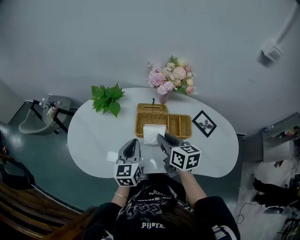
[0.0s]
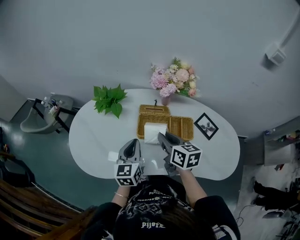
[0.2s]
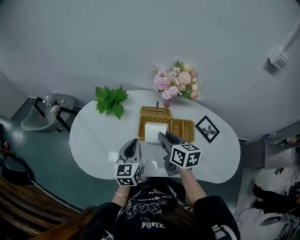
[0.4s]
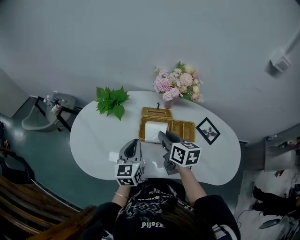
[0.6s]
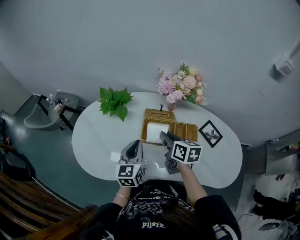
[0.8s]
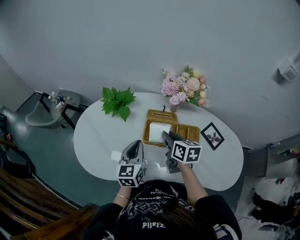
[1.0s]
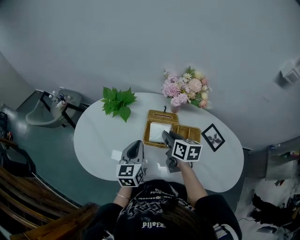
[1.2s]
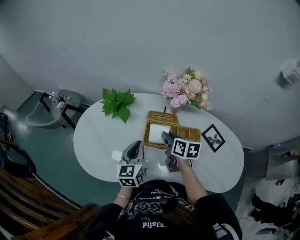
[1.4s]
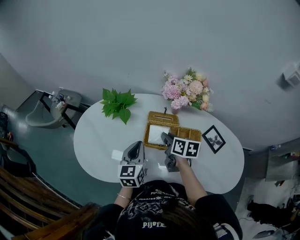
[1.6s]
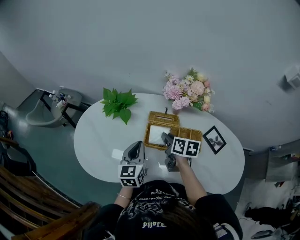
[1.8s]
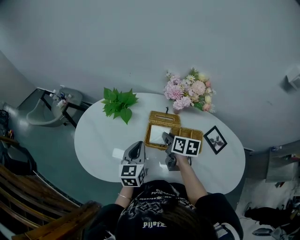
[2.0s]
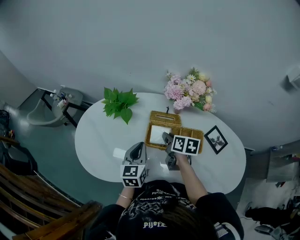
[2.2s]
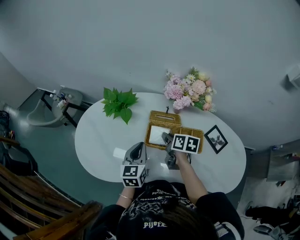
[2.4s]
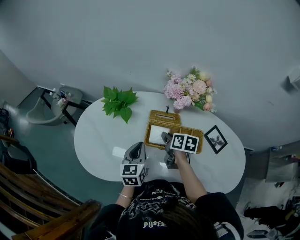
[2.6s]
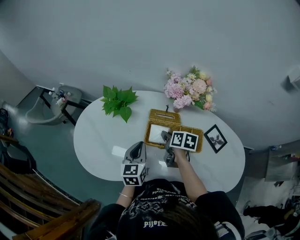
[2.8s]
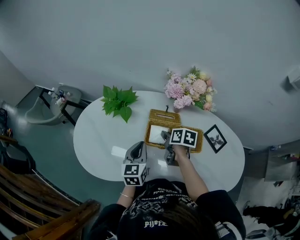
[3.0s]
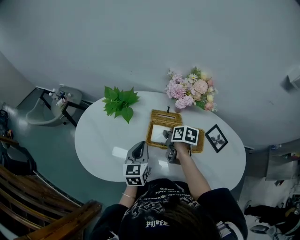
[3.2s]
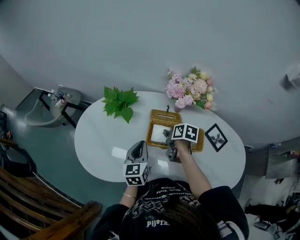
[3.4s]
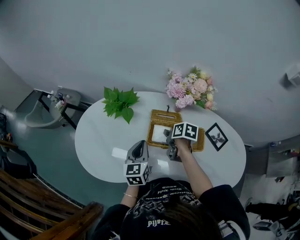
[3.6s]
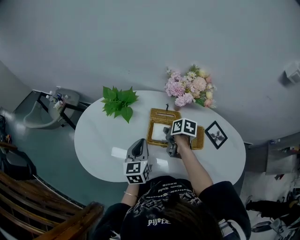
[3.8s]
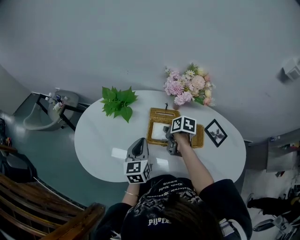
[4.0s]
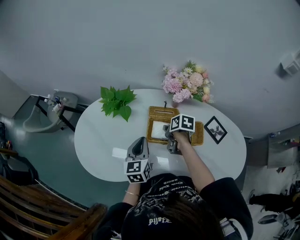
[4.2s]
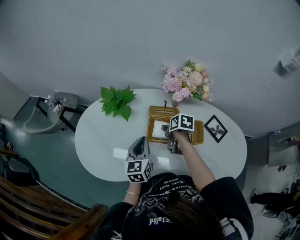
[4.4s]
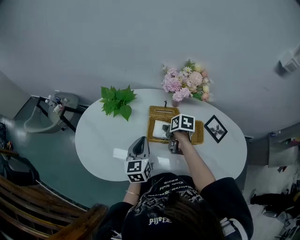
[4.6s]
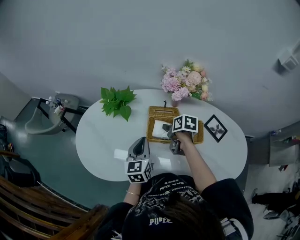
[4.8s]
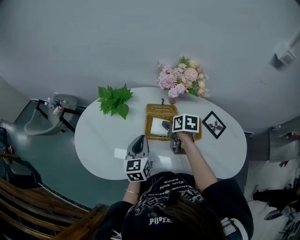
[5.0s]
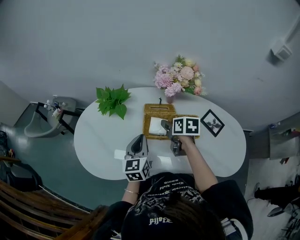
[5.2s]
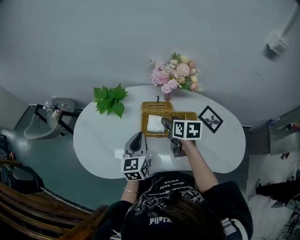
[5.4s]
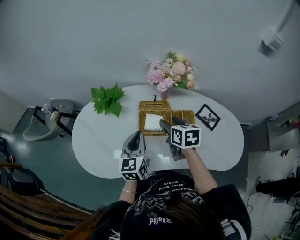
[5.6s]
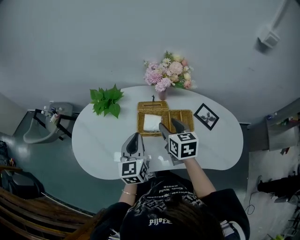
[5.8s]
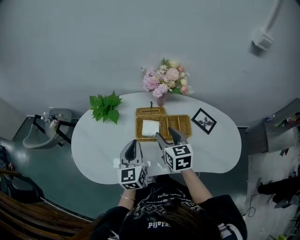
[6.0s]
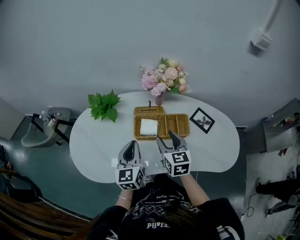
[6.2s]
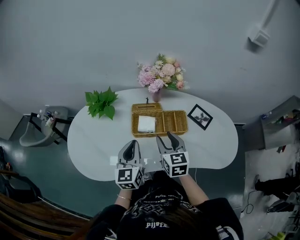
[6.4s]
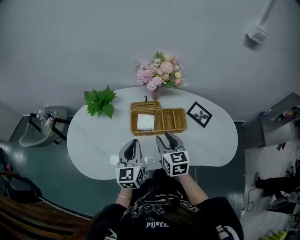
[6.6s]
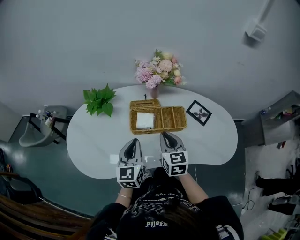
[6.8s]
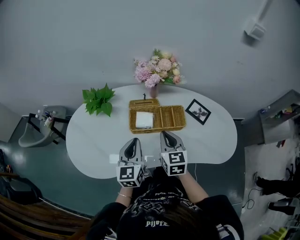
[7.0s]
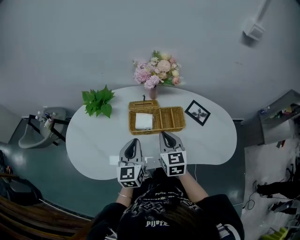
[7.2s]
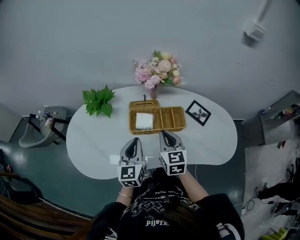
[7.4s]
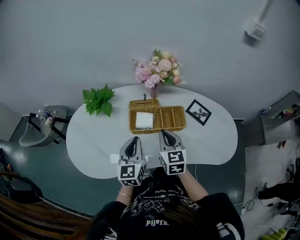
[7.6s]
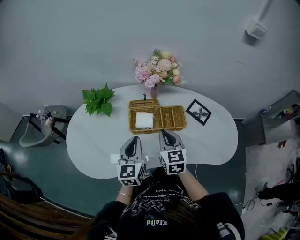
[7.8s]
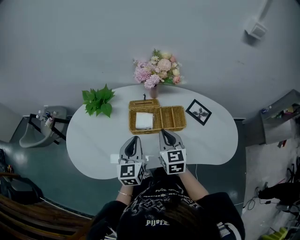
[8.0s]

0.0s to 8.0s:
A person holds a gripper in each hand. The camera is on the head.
0.0s to 1.6s: The left gripper goes some 5 cm forward. The right gripper goes roughly 10 cm forward and downward.
1.6s to 3.2s: The right gripper travels downward by some 5 cm.
3.2s to 4.8s: The right gripper opens.
4.8s to 6.4s: The right gripper goes about 15 cm backward and upward, and rotates about 50 degrees; the left gripper travels backward by about 5 cm.
6.4s to 8.0s: The right gripper closes up.

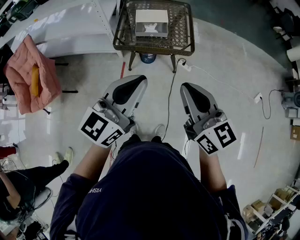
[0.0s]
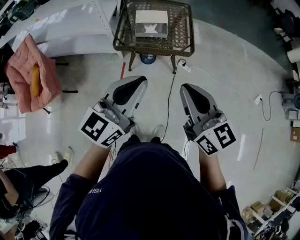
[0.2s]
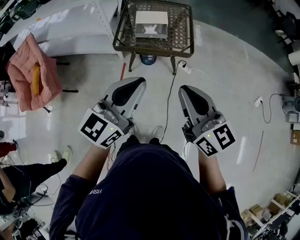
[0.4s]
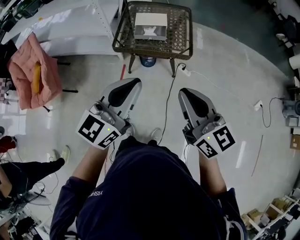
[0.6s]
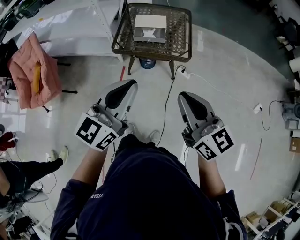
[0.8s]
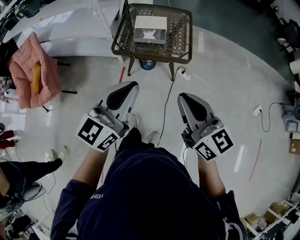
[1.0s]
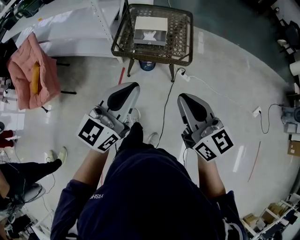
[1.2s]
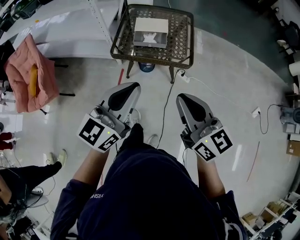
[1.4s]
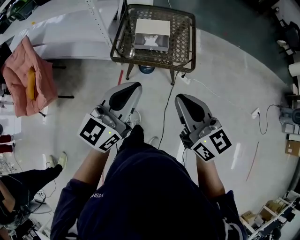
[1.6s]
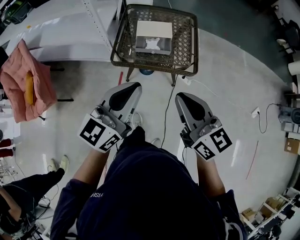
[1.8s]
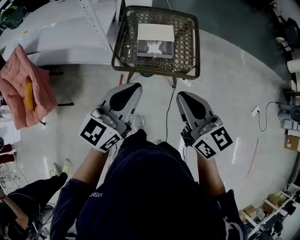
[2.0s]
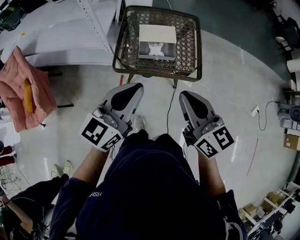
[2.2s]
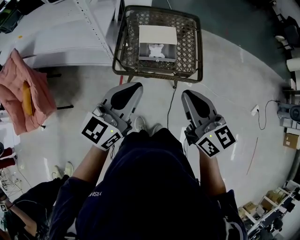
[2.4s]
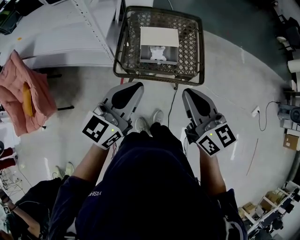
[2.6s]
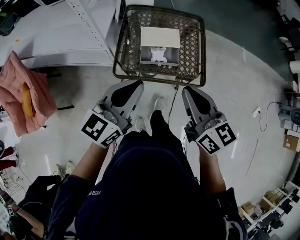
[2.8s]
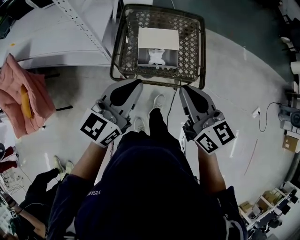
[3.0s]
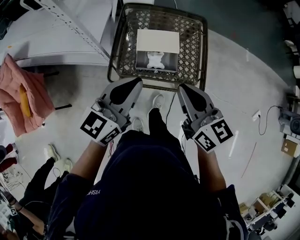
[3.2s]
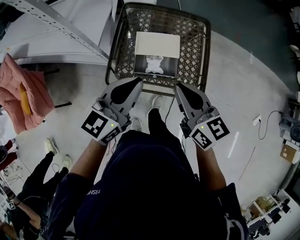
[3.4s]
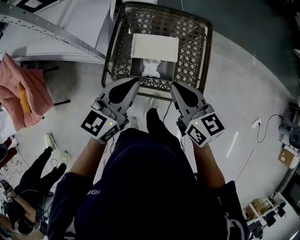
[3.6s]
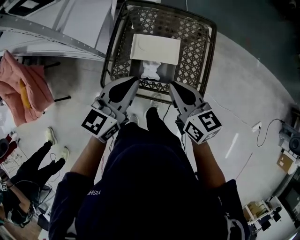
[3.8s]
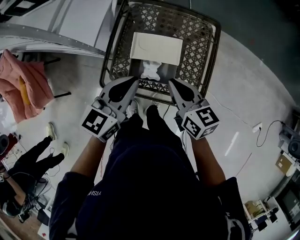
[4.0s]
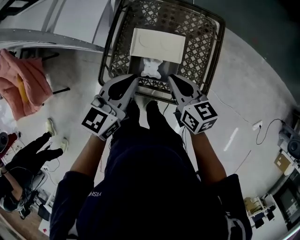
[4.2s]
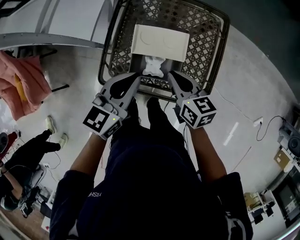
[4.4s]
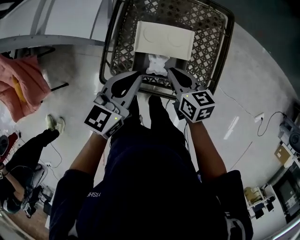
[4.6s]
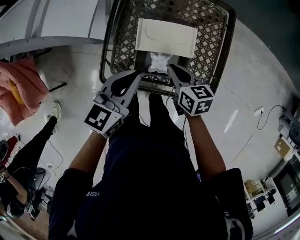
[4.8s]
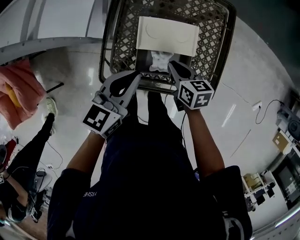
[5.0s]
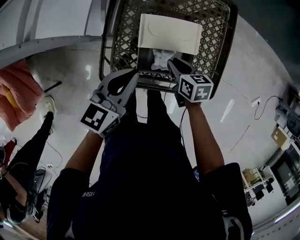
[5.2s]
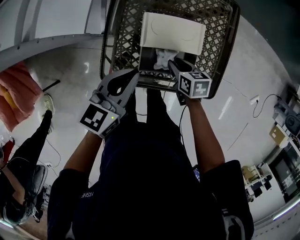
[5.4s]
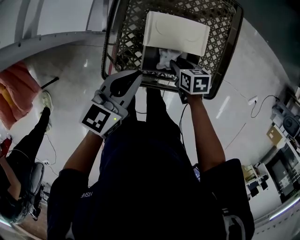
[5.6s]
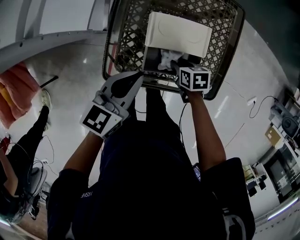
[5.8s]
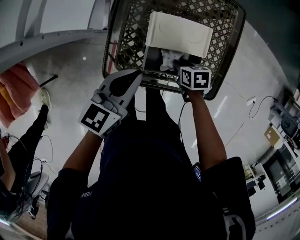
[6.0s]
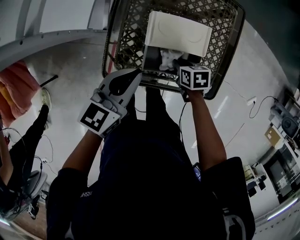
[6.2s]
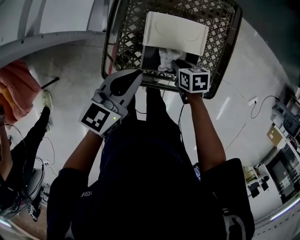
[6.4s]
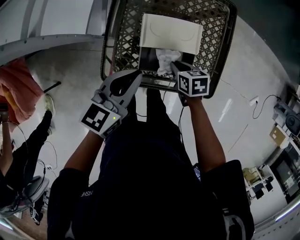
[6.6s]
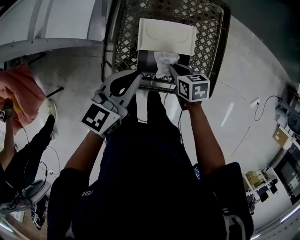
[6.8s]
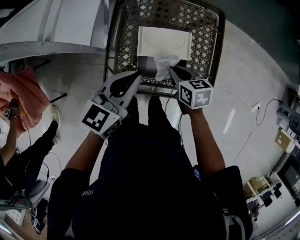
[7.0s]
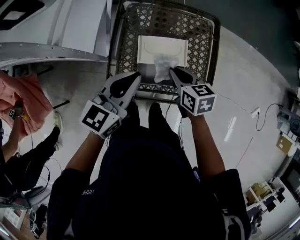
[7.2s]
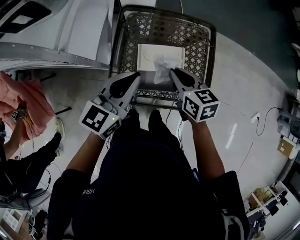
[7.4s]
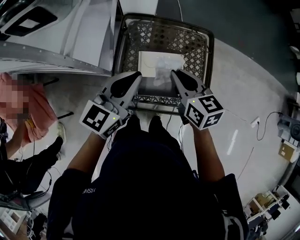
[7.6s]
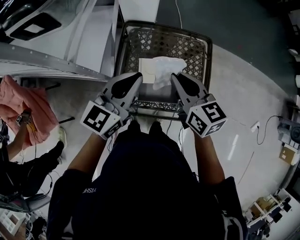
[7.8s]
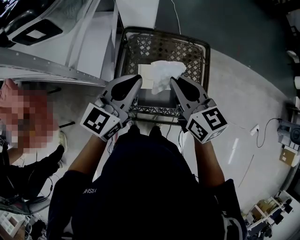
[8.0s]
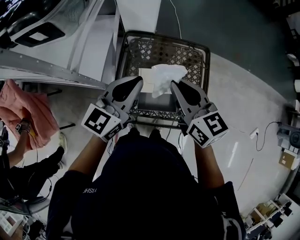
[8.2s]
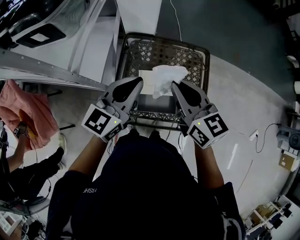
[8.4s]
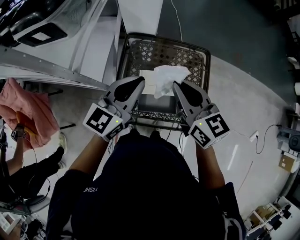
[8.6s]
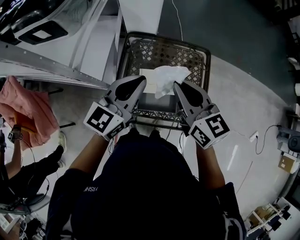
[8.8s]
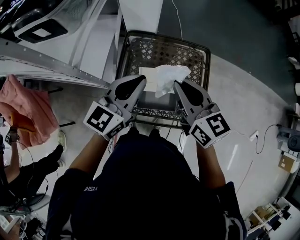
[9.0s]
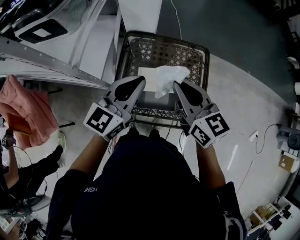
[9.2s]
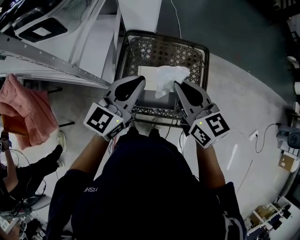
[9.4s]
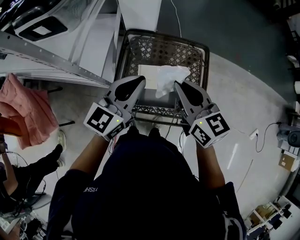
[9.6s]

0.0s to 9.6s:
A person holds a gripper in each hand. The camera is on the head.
0.0s to 1.6s: The two grippers go about 10 cm forward.
1.6s to 3.2s: Both grippers travel together forward, approximately 25 cm.
3.2s to 4.8s: The left gripper shifts some 15 cm downward and forward; the right gripper shifts about 25 cm downward and forward, and changes its angle by roughly 30 degrees.
4.8s to 6.4s: The right gripper goes some 10 cm downward, rotates roughly 30 degrees, and opens, then closes again.
6.4s to 8.0s: The right gripper moves upward, approximately 35 cm, and points its fingers approximately 50 degrees further upward. The left gripper is displaced upward and forward by about 20 cm, and turns by roughly 20 degrees.
8.0s to 9.6s: There are only small adjustments of the grippers.

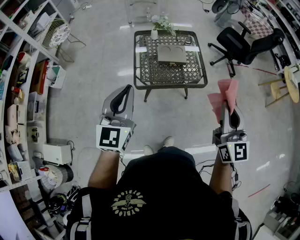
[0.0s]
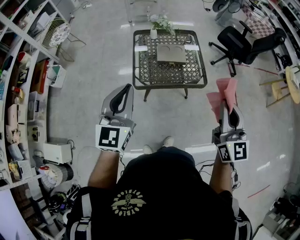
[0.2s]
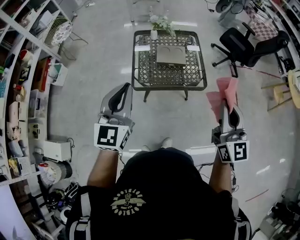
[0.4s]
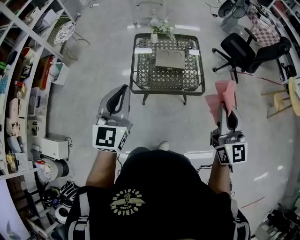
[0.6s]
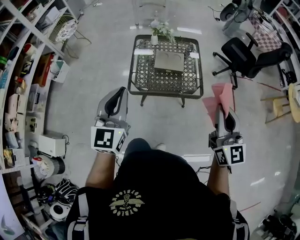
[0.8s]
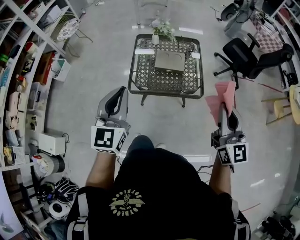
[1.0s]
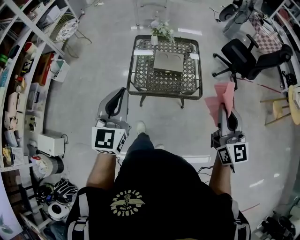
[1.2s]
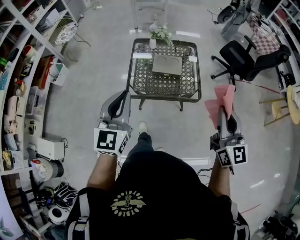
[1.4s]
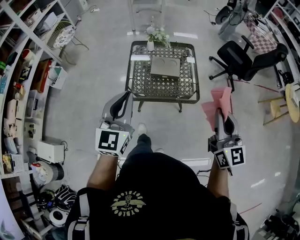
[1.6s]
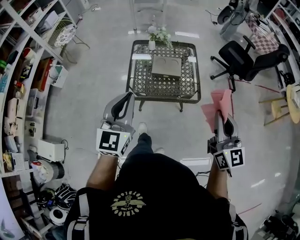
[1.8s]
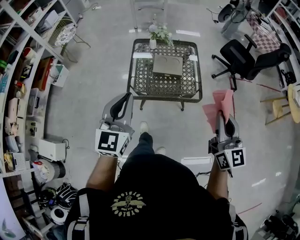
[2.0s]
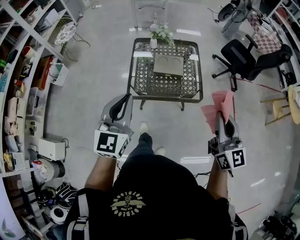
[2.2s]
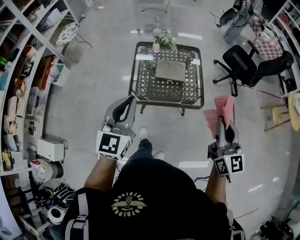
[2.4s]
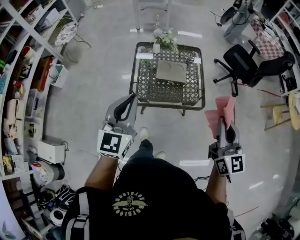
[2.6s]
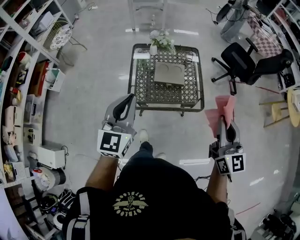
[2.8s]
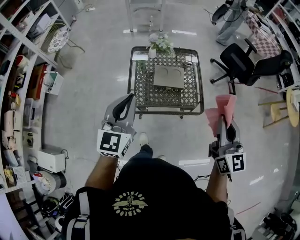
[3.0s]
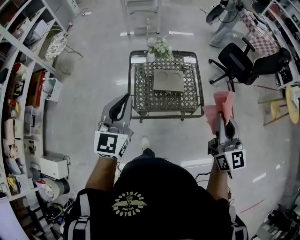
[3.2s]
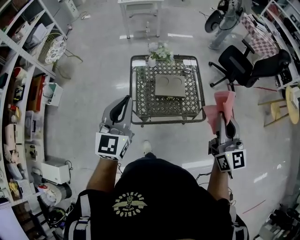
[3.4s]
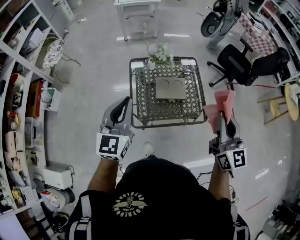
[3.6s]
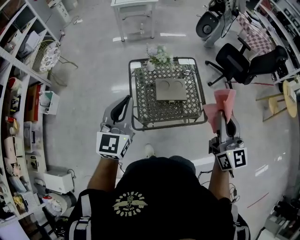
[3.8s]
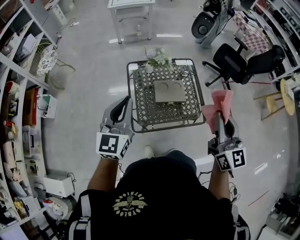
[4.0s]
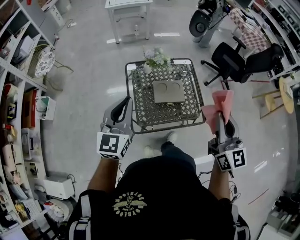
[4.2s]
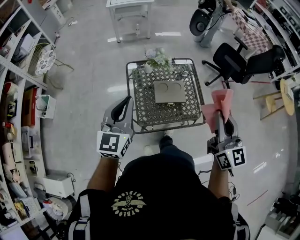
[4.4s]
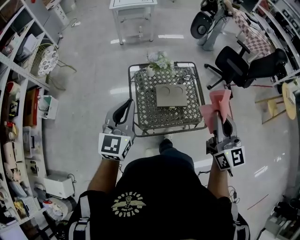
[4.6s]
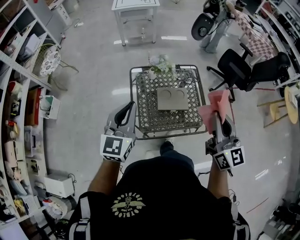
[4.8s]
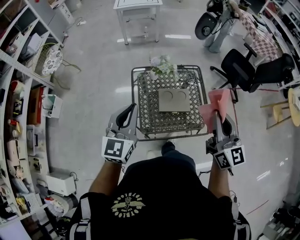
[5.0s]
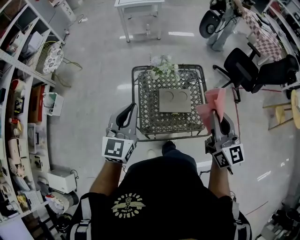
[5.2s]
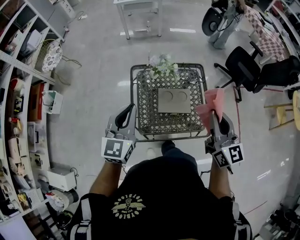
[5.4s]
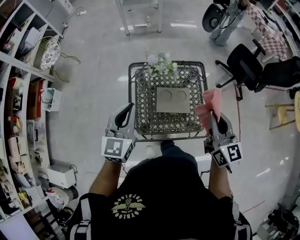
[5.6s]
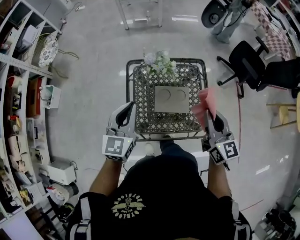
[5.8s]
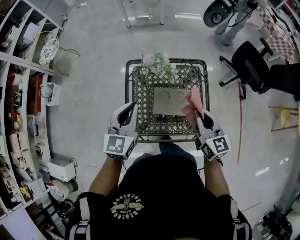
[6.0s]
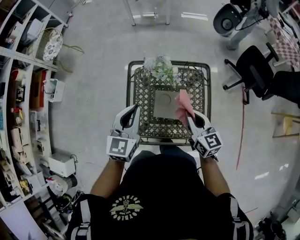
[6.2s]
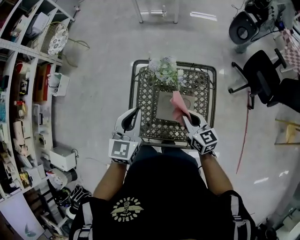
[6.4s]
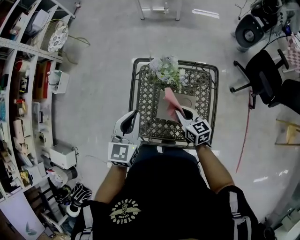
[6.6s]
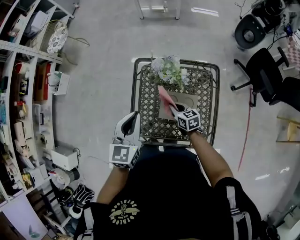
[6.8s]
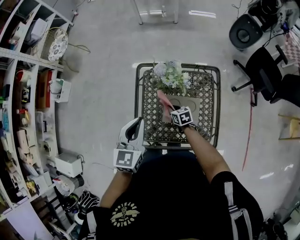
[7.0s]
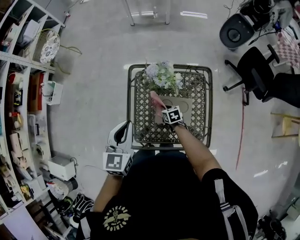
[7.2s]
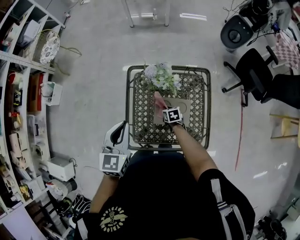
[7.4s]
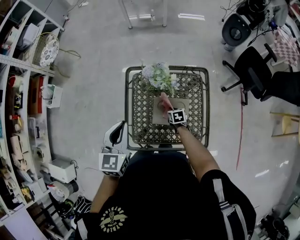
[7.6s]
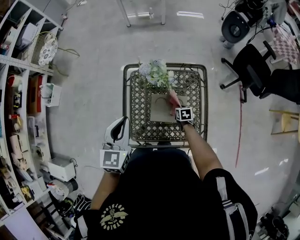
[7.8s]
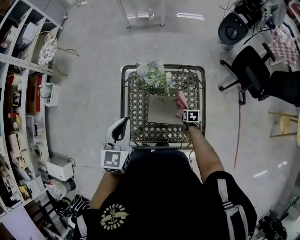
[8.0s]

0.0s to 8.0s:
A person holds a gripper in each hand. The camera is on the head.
0.0s to 1.6s: The left gripper heads to the right, covering roughly 10 cm, while the right gripper goes approximately 10 cm to the right and forward.
1.6s to 3.2s: Both grippers move forward and to the left, approximately 15 cm.
3.2s to 4.8s: The left gripper is displaced forward by about 15 cm. Meanwhile the right gripper is displaced forward and to the left by approximately 15 cm.
4.8s to 6.4s: The right gripper moves downward and forward, approximately 35 cm, and swivels some 40 degrees; the left gripper moves forward, downward and to the right, about 20 cm, and rotates approximately 20 degrees.
6.4s to 8.0s: The right gripper goes roughly 30 cm downward and to the right, and tilts its fingers approximately 40 degrees downward.
